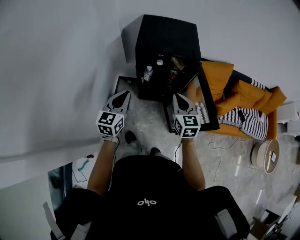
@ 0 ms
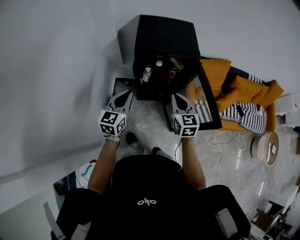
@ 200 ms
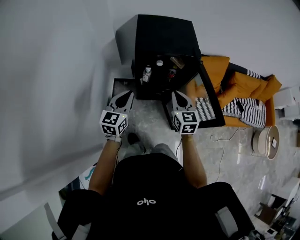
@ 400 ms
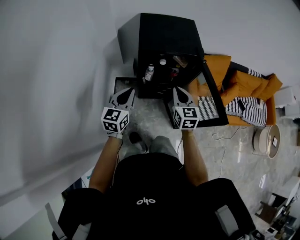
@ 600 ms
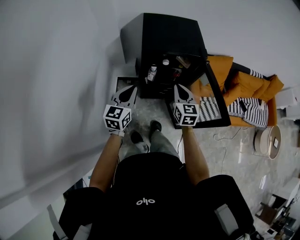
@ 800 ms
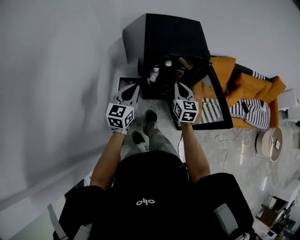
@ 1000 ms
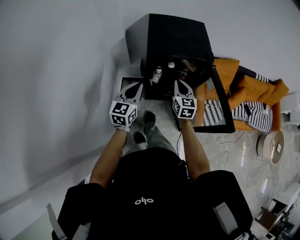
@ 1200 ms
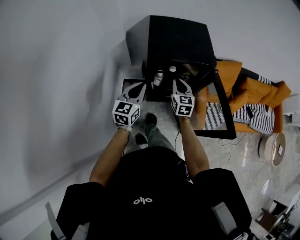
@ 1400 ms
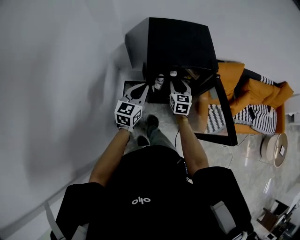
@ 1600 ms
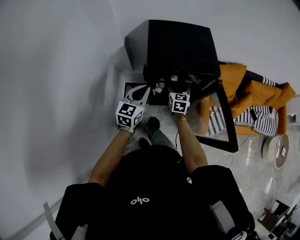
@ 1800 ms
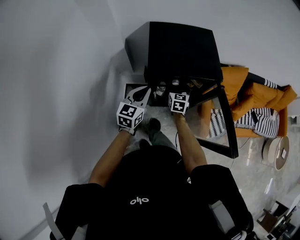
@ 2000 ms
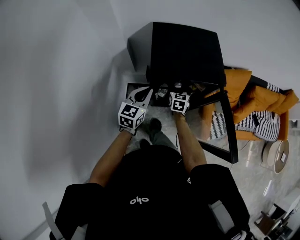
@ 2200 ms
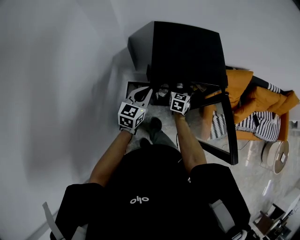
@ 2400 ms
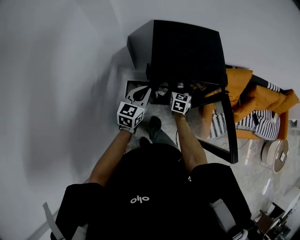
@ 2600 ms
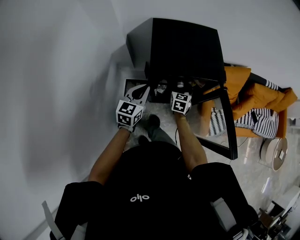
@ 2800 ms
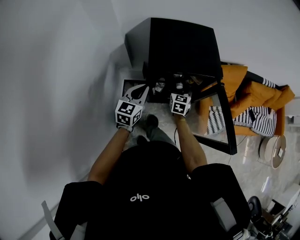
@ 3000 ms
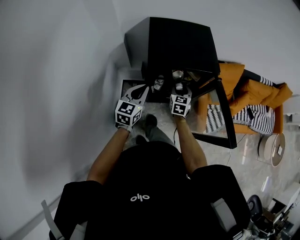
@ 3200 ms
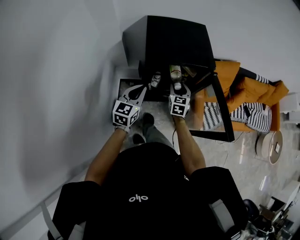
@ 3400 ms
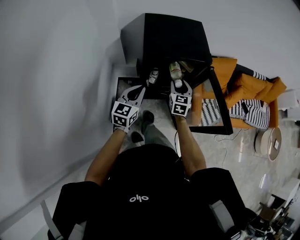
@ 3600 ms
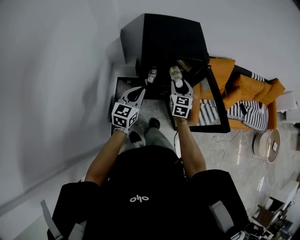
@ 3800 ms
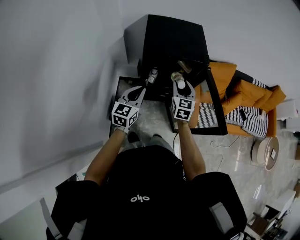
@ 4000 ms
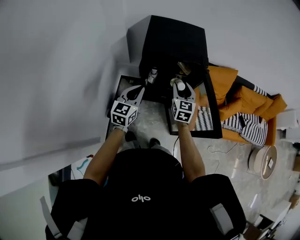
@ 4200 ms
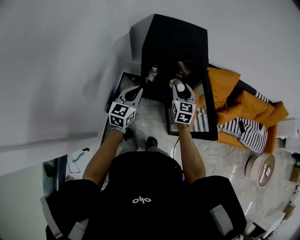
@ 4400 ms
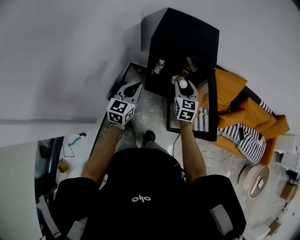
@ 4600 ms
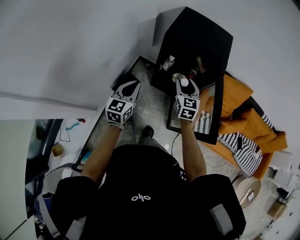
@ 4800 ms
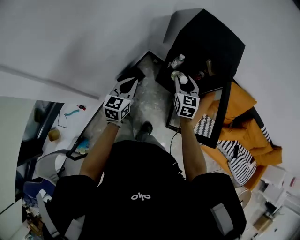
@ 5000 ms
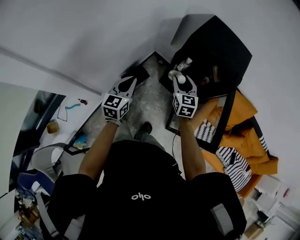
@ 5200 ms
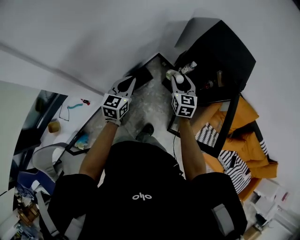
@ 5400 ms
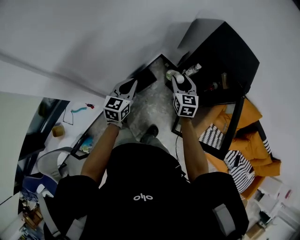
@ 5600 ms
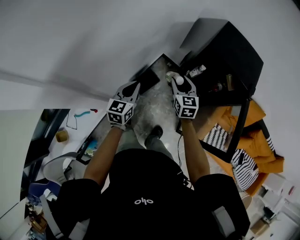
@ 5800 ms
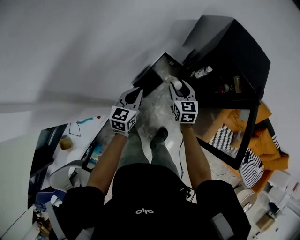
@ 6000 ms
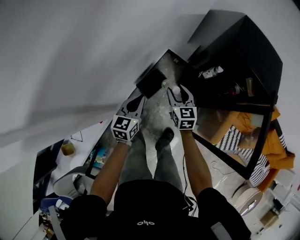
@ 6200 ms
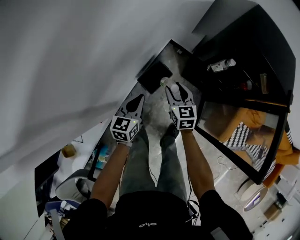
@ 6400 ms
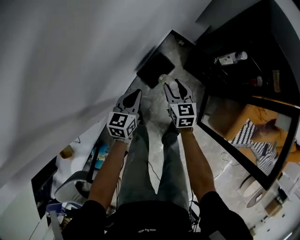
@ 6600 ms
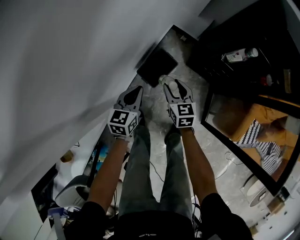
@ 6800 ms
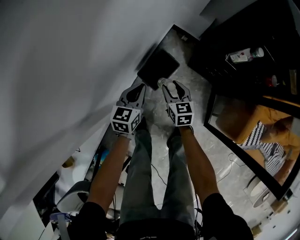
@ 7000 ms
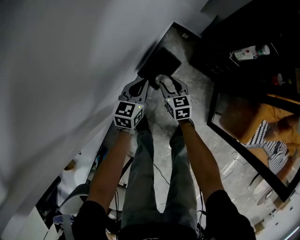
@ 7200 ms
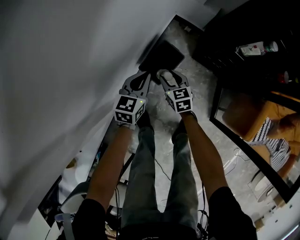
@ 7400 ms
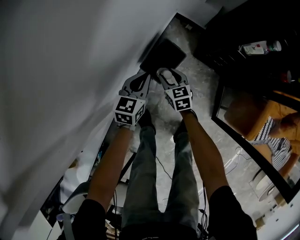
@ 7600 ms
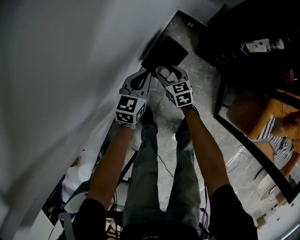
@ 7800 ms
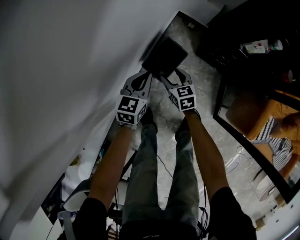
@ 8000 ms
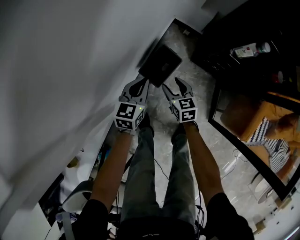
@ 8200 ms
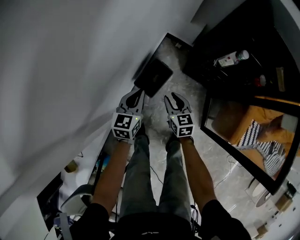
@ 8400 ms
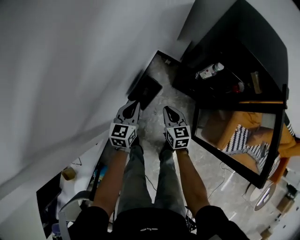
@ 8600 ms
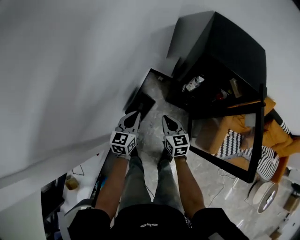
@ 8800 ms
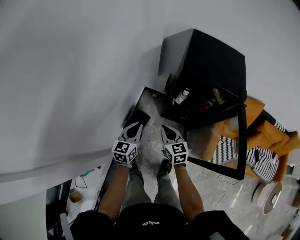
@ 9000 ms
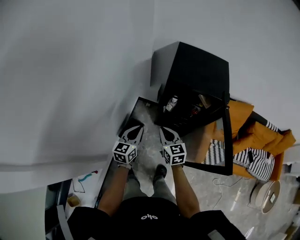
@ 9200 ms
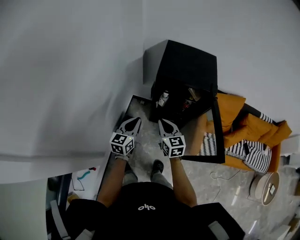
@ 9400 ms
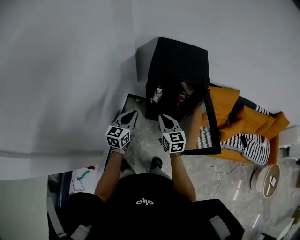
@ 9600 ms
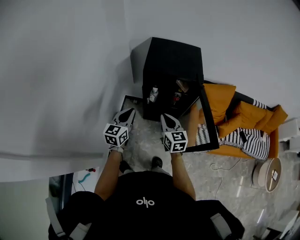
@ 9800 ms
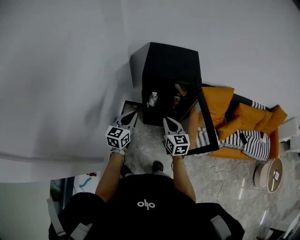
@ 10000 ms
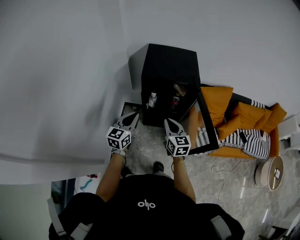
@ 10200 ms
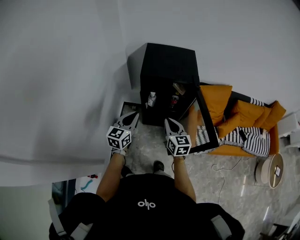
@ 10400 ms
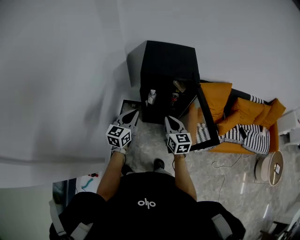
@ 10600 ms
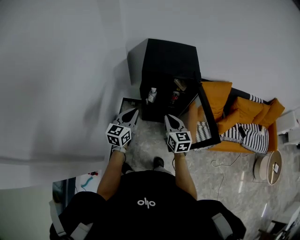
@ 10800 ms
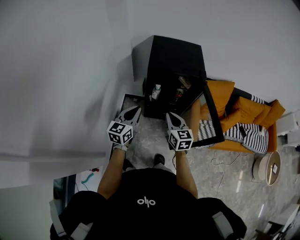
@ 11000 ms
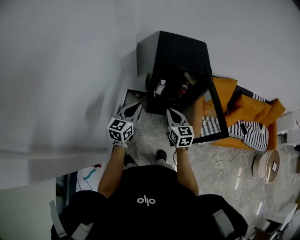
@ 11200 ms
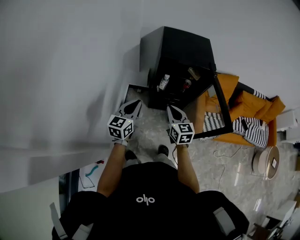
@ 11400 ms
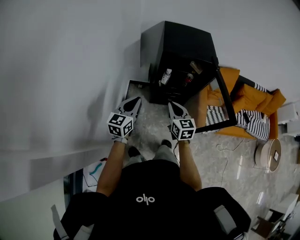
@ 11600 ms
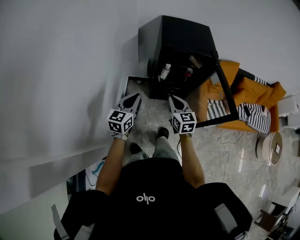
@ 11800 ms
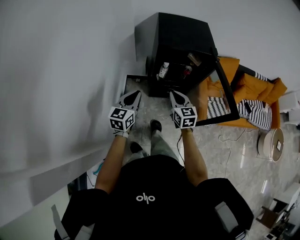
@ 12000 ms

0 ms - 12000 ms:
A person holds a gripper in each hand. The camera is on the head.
0 ms - 1600 ms: The left gripper travels forward by approximately 15 cm. The right gripper shifts approximately 25 cm forward, downward and to the left, and opens.
1600 ms - 3000 ms: The right gripper travels downward by approximately 5 cm.
3000 ms - 4400 ms: The right gripper travels backward, upward and to the right by approximately 20 cm, while the left gripper moves backward and to the right, some 20 cm.
4400 ms - 6000 ms: The left gripper ends up some 30 cm from where it was, and rotates some 30 degrees. The right gripper changes place by approximately 30 cm, and turns by roughly 40 degrees.
6000 ms - 7600 ms: The grippers both shift downward by approximately 40 cm.
7600 ms - 9000 ms: Both grippers move upward and to the right, roughly 40 cm. The right gripper changes its angle by roughly 20 degrees, and closes its fingers.
9000 ms - 10400 ms: The right gripper travels to the right and upward by about 25 cm, and turns by approximately 20 degrees. Meanwhile the left gripper is displaced upward and to the right by roughly 20 cm, and changes its angle by some 20 degrees.
10400 ms - 12000 ms: The left gripper is displaced to the left by roughly 10 cm, while the right gripper is displaced to the left and downward by about 10 cm.

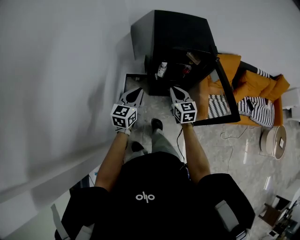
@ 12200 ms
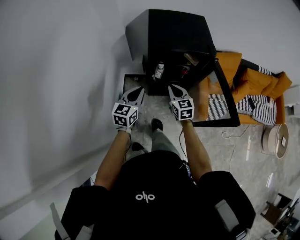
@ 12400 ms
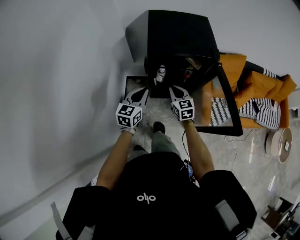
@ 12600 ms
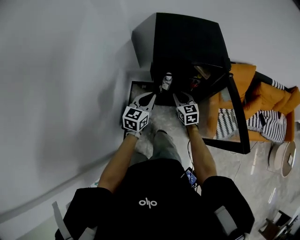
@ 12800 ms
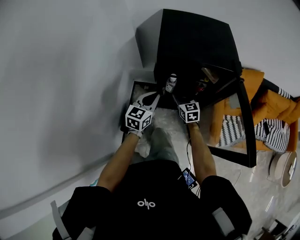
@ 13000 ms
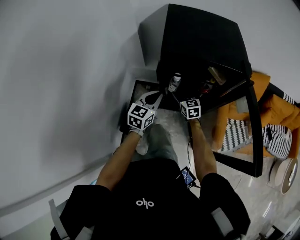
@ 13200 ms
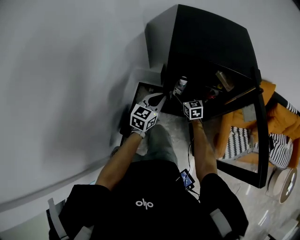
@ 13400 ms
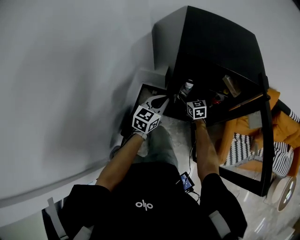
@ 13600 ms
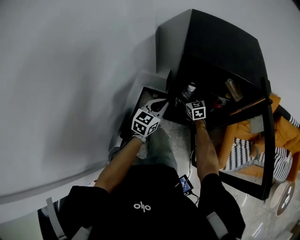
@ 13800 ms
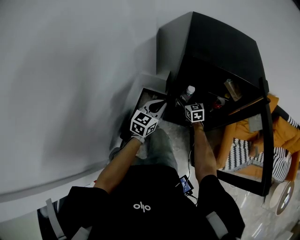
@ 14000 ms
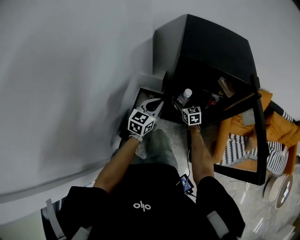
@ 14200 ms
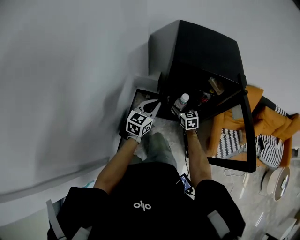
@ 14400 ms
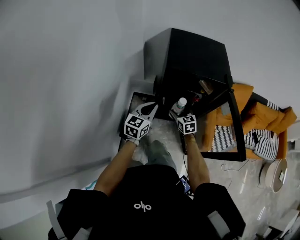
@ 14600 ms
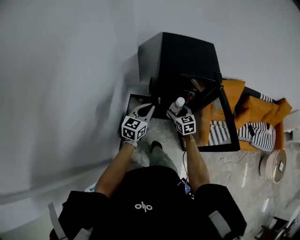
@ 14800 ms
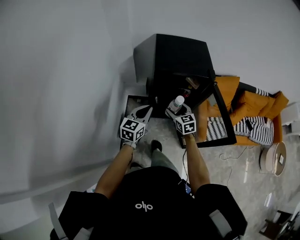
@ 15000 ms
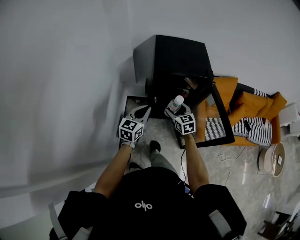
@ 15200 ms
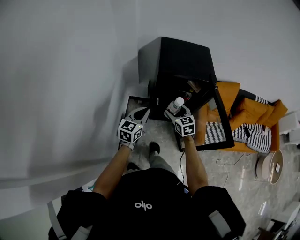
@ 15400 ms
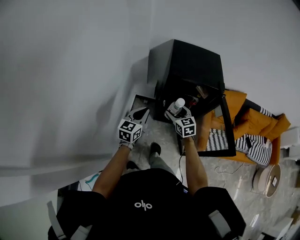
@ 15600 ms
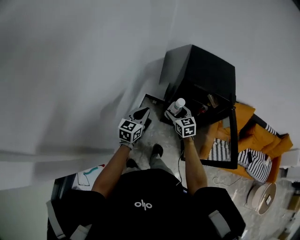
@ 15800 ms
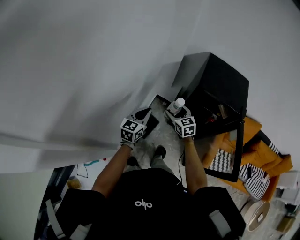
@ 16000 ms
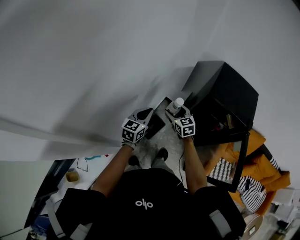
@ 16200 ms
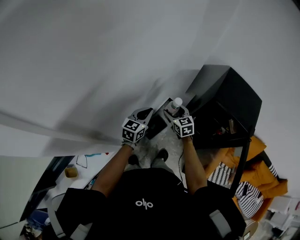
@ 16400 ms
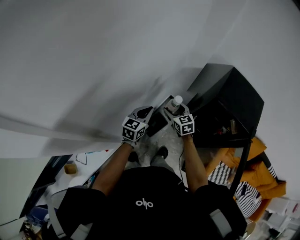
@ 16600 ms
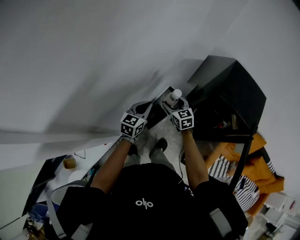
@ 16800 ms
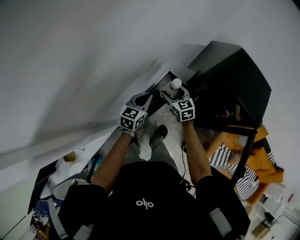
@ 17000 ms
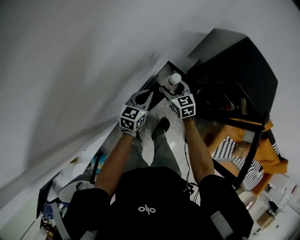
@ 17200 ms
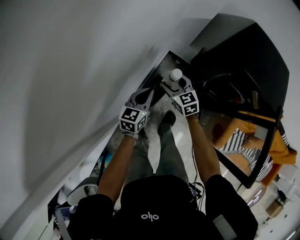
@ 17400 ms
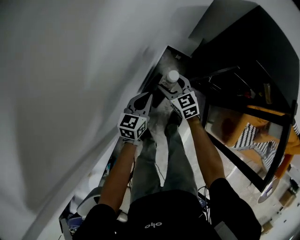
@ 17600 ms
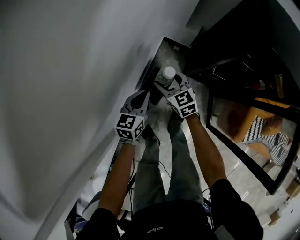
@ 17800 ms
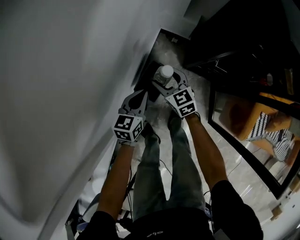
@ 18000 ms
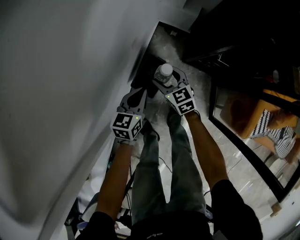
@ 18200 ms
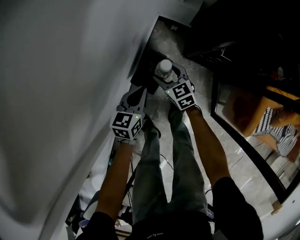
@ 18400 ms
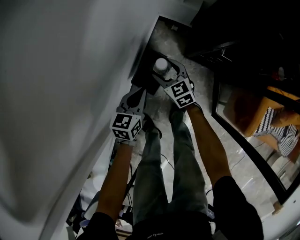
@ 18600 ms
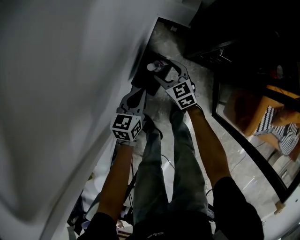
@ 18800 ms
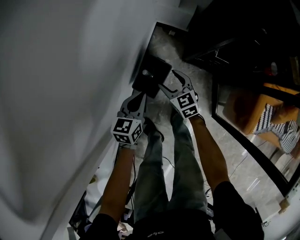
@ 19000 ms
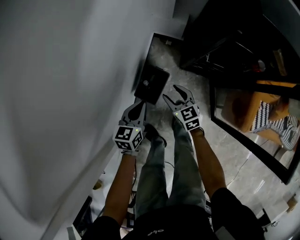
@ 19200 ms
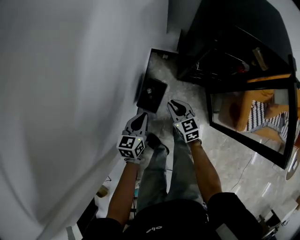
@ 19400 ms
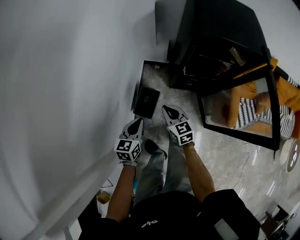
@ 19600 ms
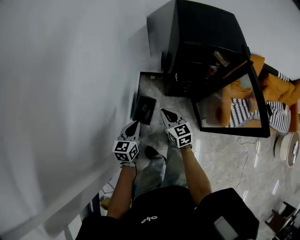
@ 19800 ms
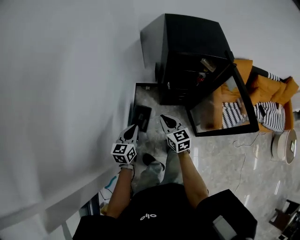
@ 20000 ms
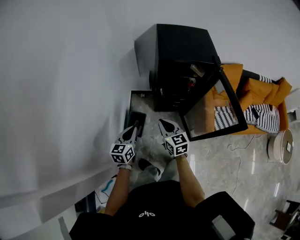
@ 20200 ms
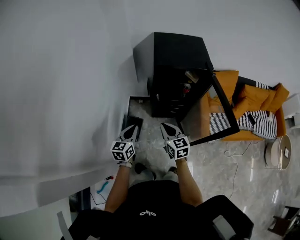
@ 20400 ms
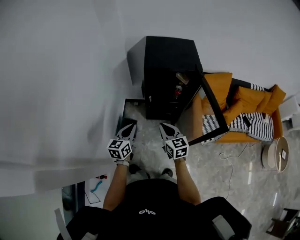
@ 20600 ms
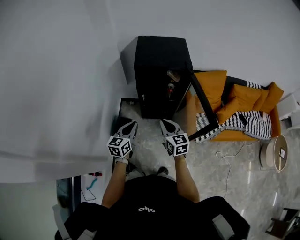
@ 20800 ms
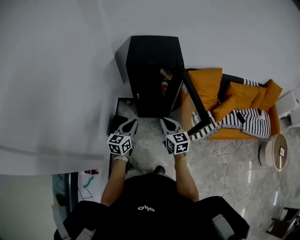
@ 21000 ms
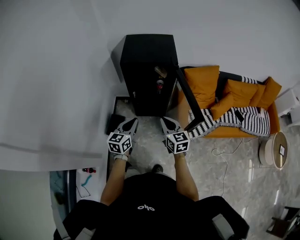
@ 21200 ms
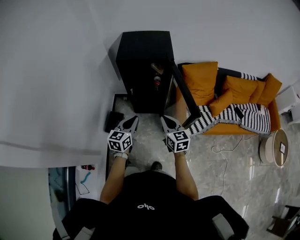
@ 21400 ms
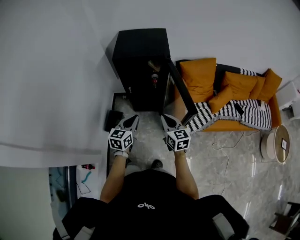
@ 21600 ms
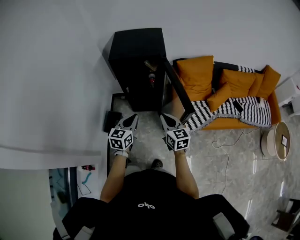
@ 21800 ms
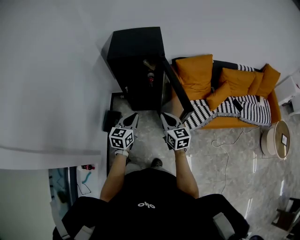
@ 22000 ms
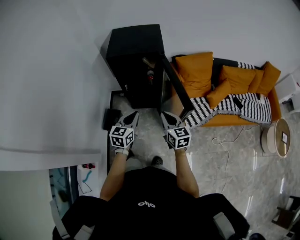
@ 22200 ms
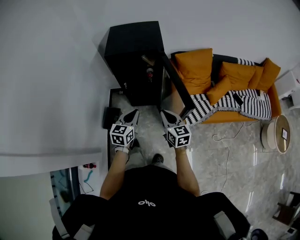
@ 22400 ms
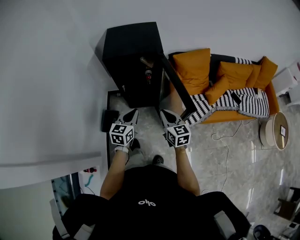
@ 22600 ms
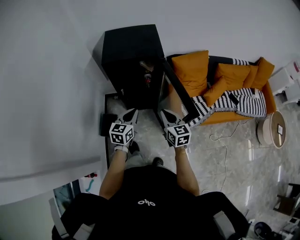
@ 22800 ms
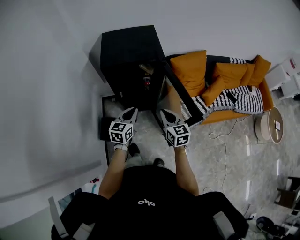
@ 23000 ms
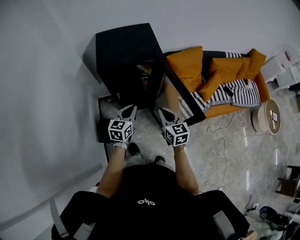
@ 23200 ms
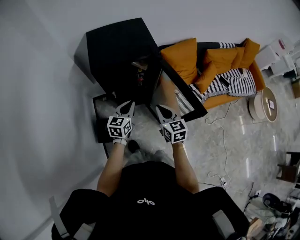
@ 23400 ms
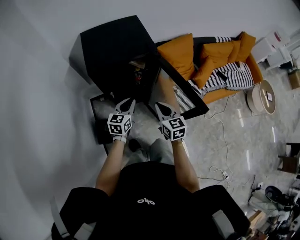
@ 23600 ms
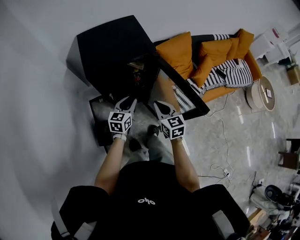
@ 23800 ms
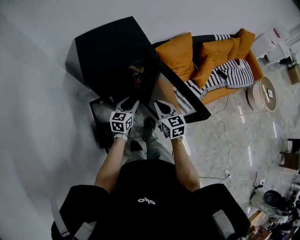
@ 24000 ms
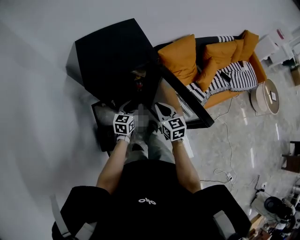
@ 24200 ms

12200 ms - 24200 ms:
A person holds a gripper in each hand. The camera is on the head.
12200 ms - 13800 ms: The two grippers go some 35 cm downward and forward. The right gripper opens up.
13800 ms - 15200 ms: The grippers both shift upward and backward by some 35 cm.
15200 ms - 16600 ms: The left gripper ends up roughly 25 cm from where it was, and changes its angle by roughly 30 degrees. The right gripper moves about 30 cm, and changes its angle by roughly 40 degrees.
16600 ms - 18200 ms: Both grippers move downward, some 40 cm.
18200 ms - 19800 ms: The left gripper shifts some 25 cm upward, while the right gripper moves upward and backward, some 35 cm, turns by about 30 degrees, and closes up.
19800 ms - 21200 ms: The grippers both shift to the right and upward by some 35 cm.
21200 ms - 22600 ms: Both grippers travel together to the right, about 5 cm.
22600 ms - 24200 ms: The right gripper moves forward and to the left, roughly 20 cm, while the left gripper is displaced forward and downward by about 25 cm.
